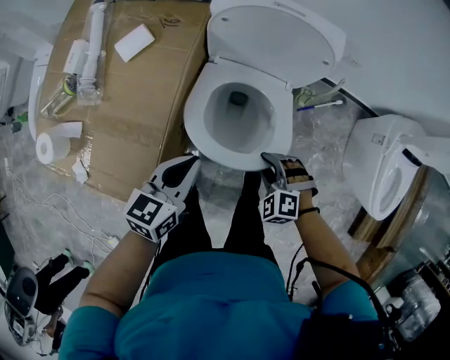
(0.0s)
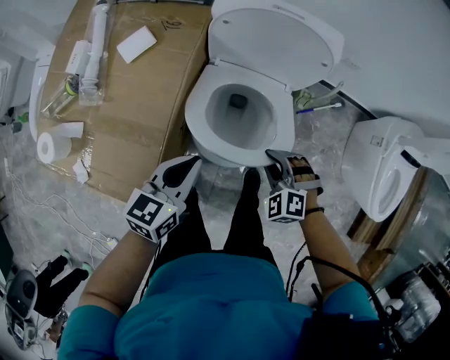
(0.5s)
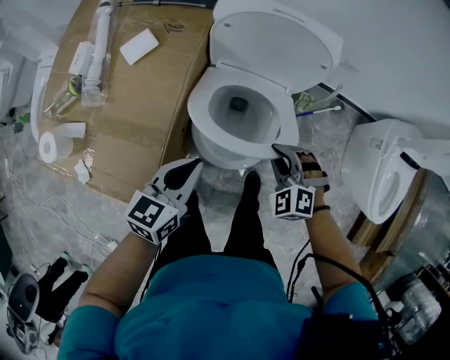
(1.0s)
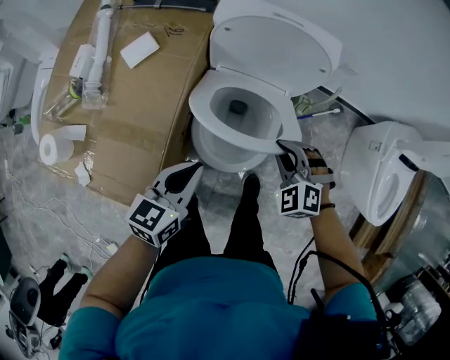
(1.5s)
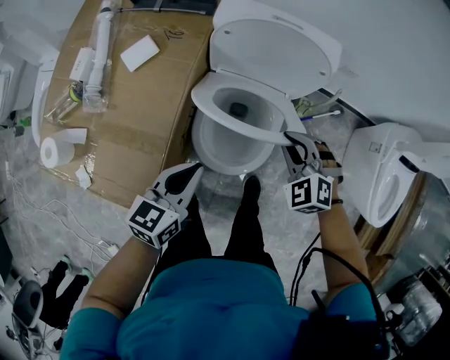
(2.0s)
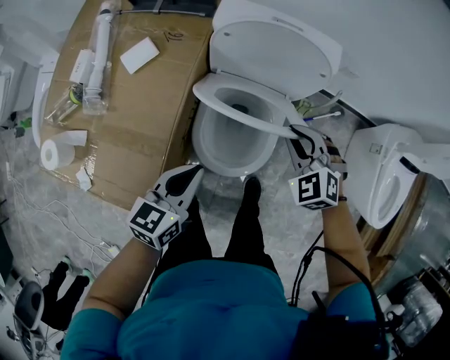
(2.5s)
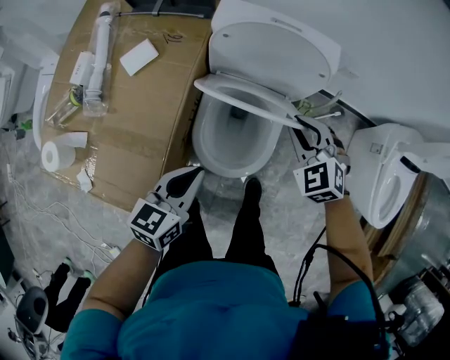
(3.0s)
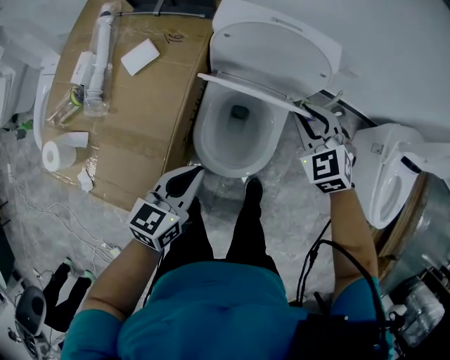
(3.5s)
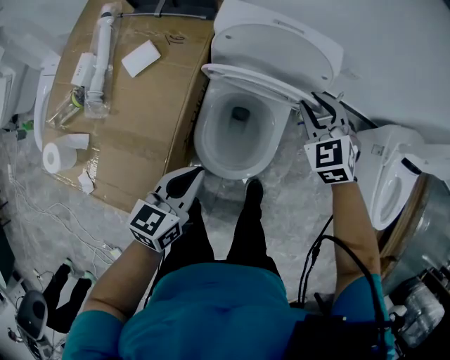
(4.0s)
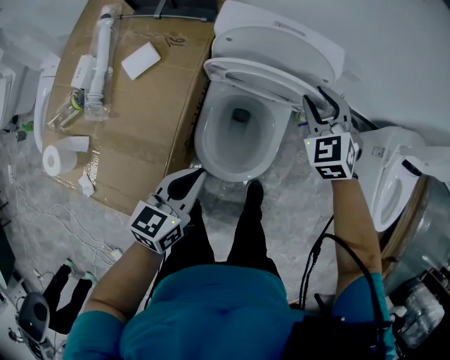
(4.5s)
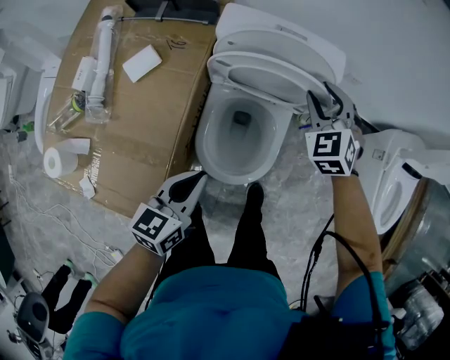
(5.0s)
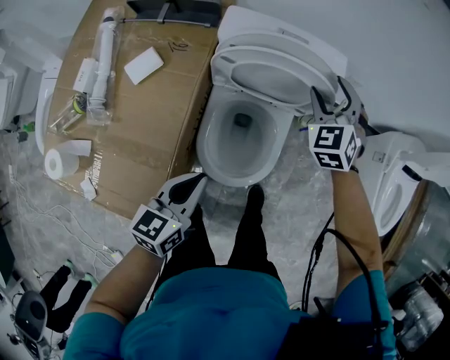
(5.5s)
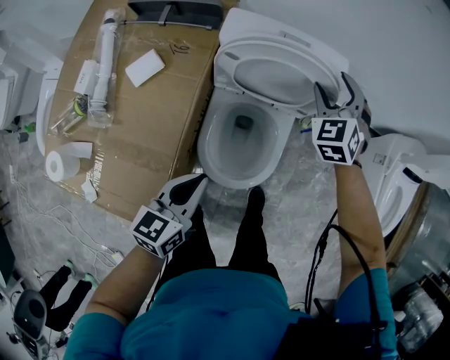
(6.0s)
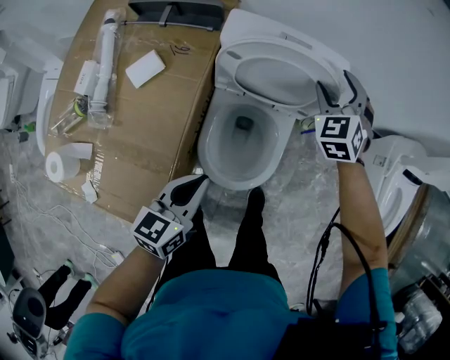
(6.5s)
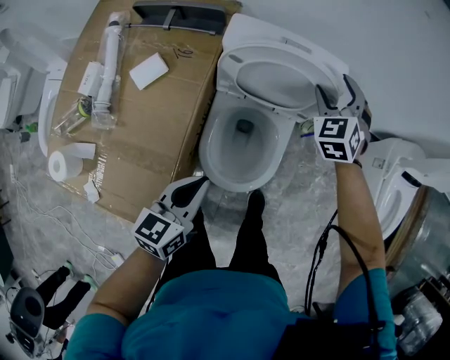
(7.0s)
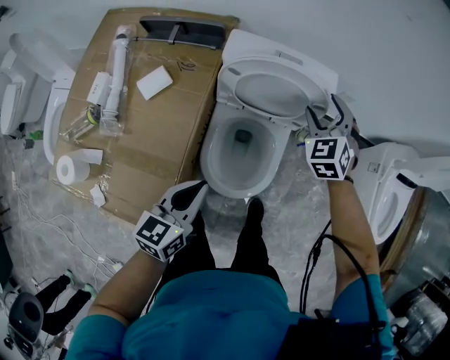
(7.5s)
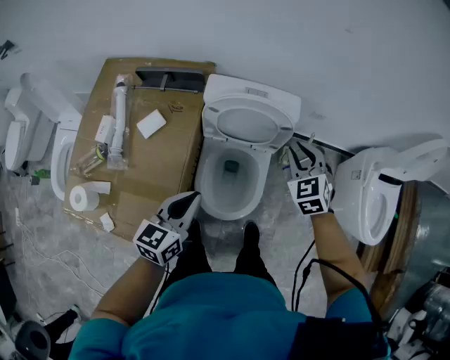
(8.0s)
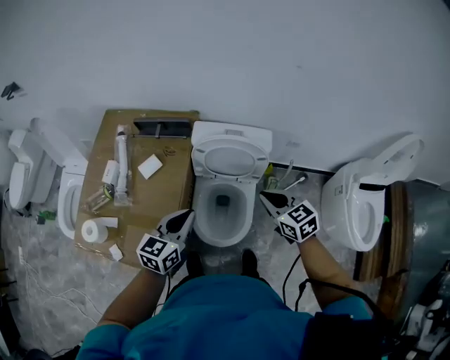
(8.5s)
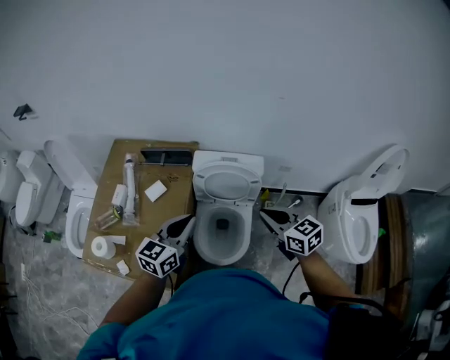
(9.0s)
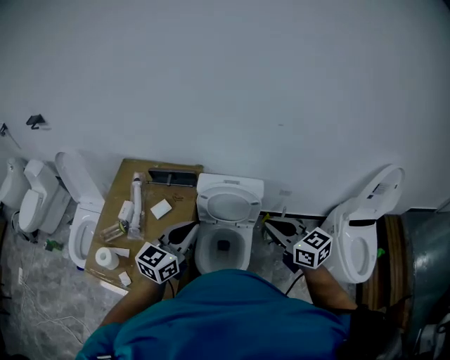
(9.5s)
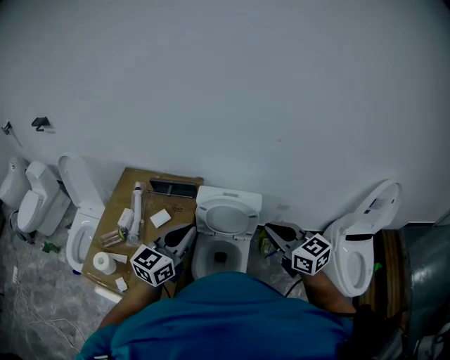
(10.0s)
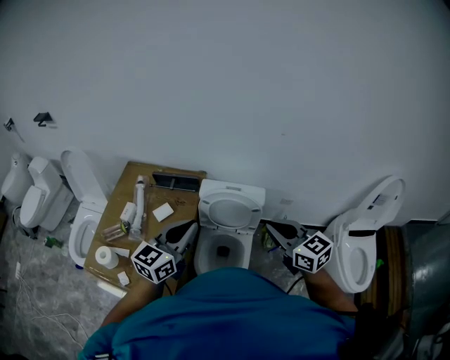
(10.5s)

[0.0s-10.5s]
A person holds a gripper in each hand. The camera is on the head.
0.0s to 2.0s: The right gripper heads forward and upward, covering roughly 15 cm.
2.0s to 4.0s: The right gripper shifts some 10 cm forward.
4.0s to 6.5s: The right gripper goes about 10 cm forward, and opens its fingers.
6.5s to 8.5s: The right gripper travels backward and upward by some 25 cm, changes its angle by some 50 degrees, and closes its fingers. The left gripper shifts about 20 cm upward.
8.5s to 10.5s: The two grippers go roughly 20 cm upward.

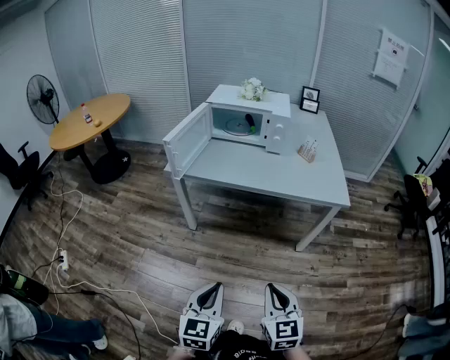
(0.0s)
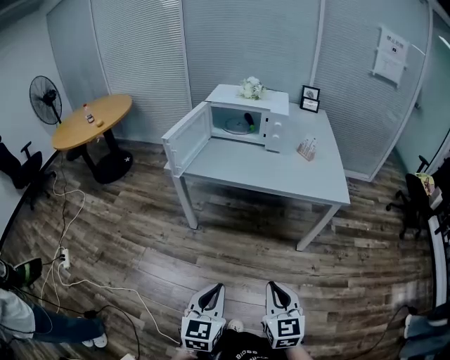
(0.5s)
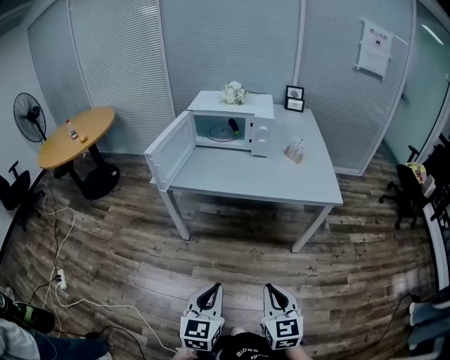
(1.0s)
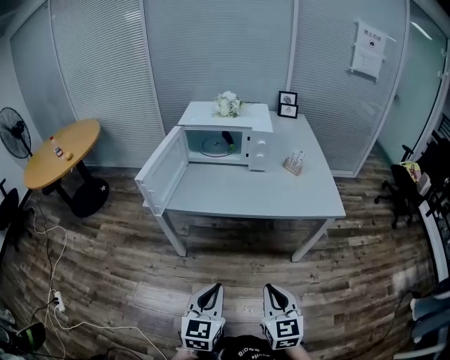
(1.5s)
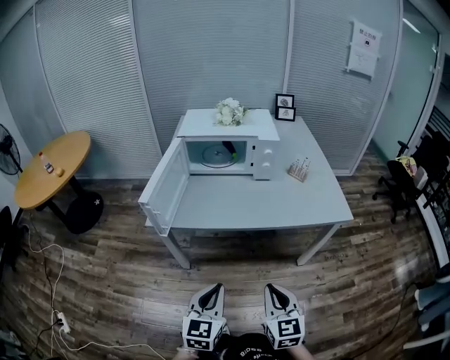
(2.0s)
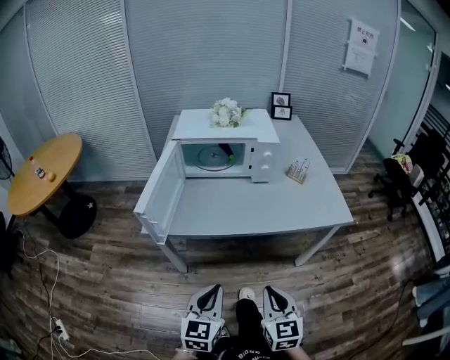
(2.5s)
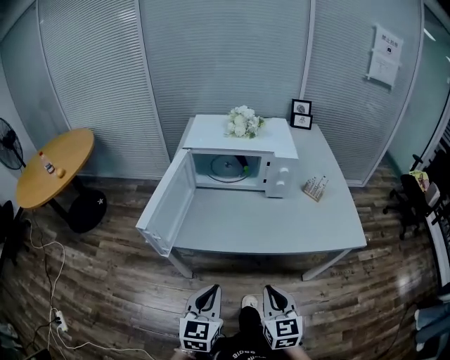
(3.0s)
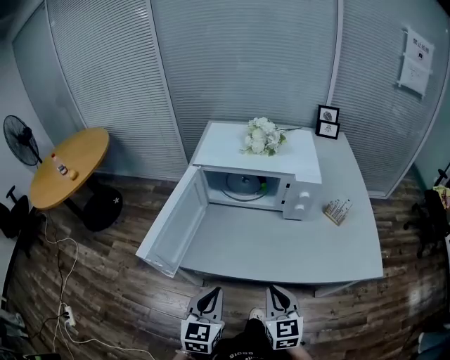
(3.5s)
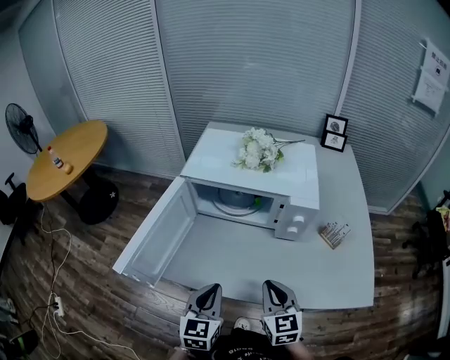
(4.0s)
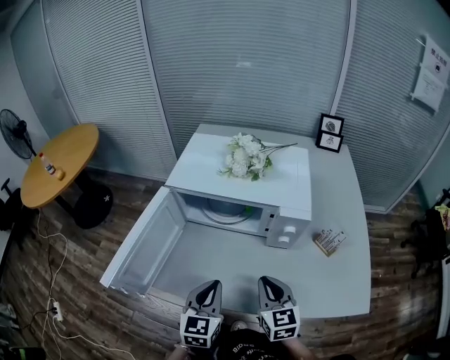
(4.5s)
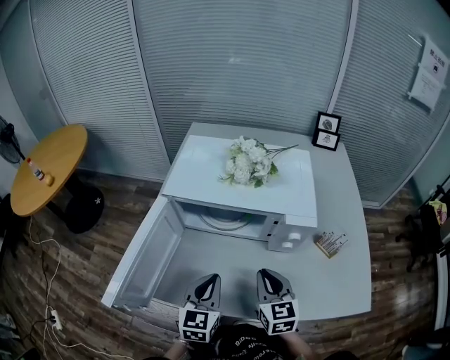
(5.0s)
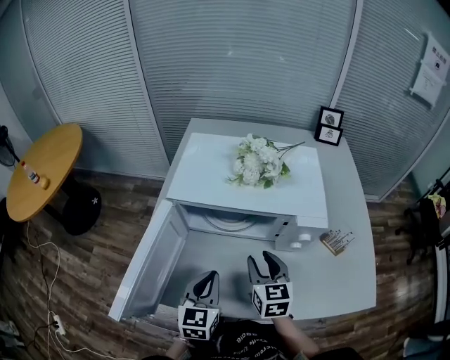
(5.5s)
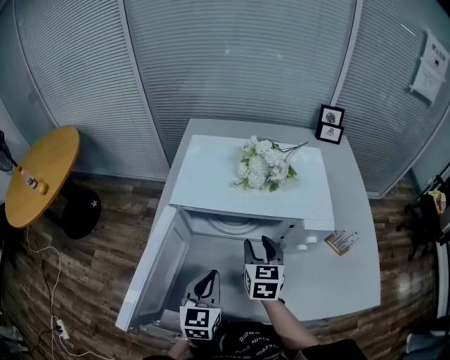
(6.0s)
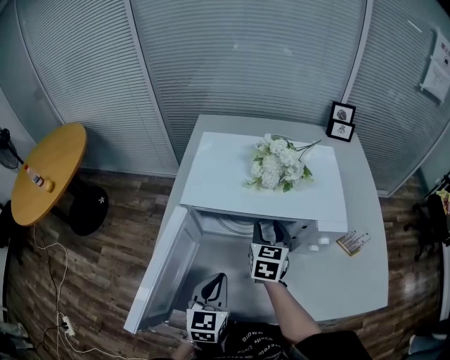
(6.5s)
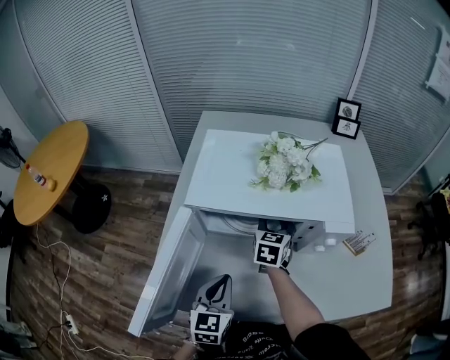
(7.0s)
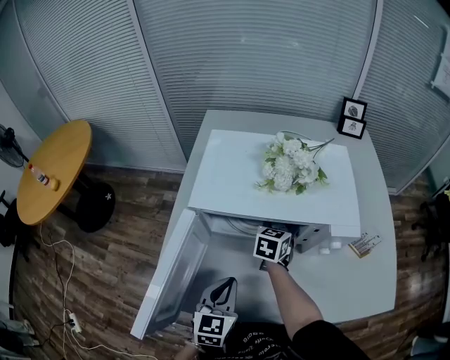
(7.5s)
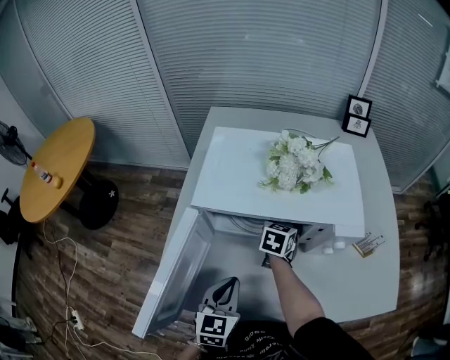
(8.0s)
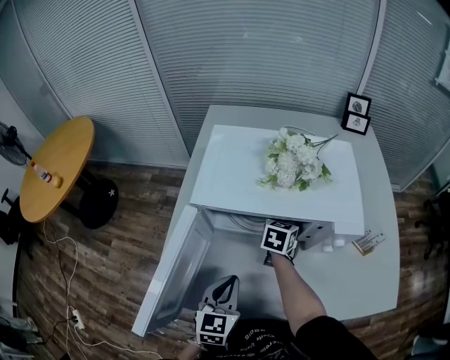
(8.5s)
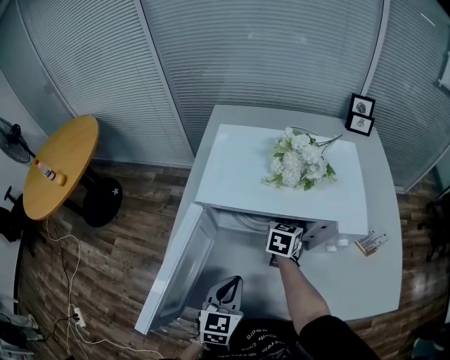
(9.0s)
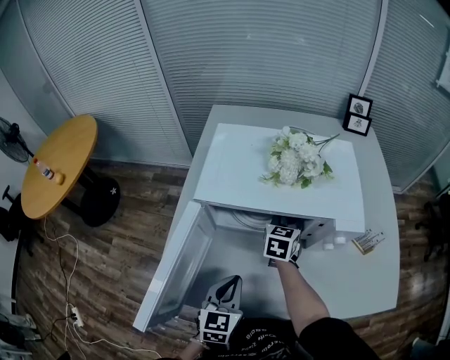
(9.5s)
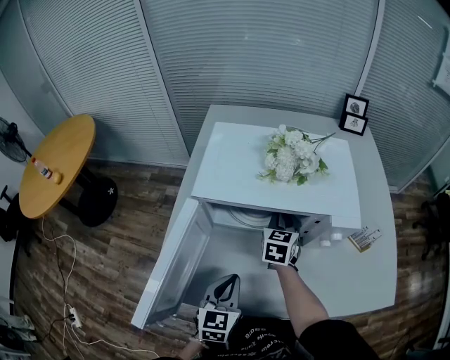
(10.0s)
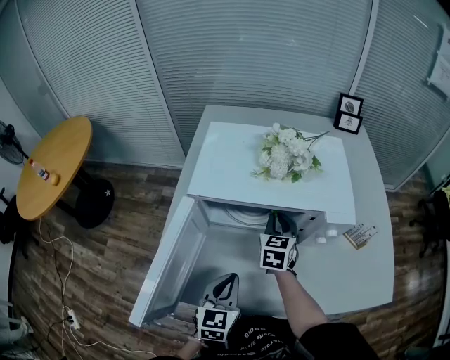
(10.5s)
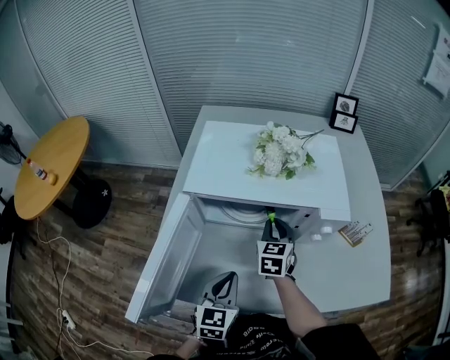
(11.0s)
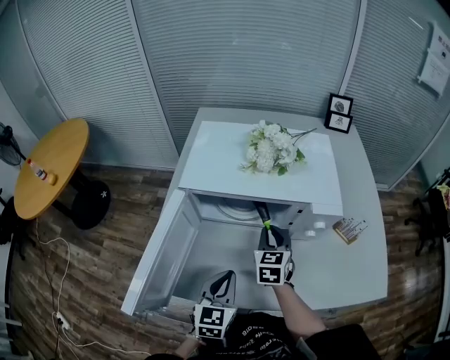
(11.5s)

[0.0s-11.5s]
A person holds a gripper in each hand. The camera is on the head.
0.0s to 2.0s: The grippers both shift forward by about 20 cm.
2.0s to 4.0s: Both grippers travel together forward, some 30 cm.
4.0s to 6.0s: The right gripper shifts some 20 cm forward, and opens, while the left gripper goes some 15 cm forward.
6.0s to 7.5s: The right gripper shifts some 10 cm forward and downward.
7.5s to 9.5s: The right gripper closes up.
9.5s to 11.5s: The right gripper moves backward, about 10 cm.

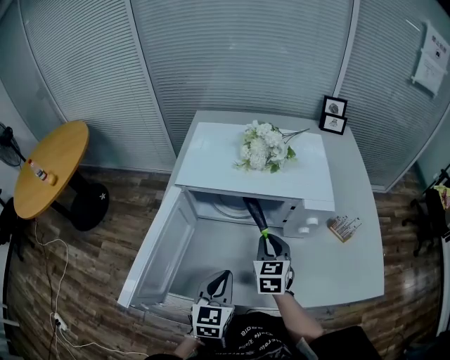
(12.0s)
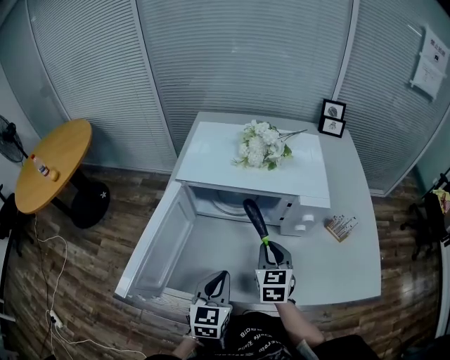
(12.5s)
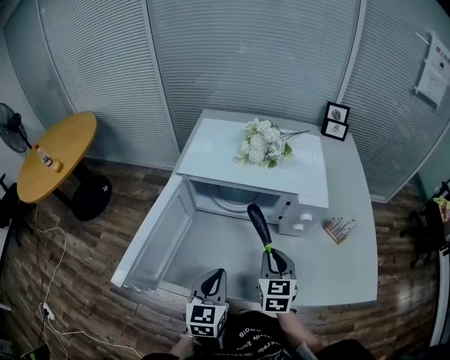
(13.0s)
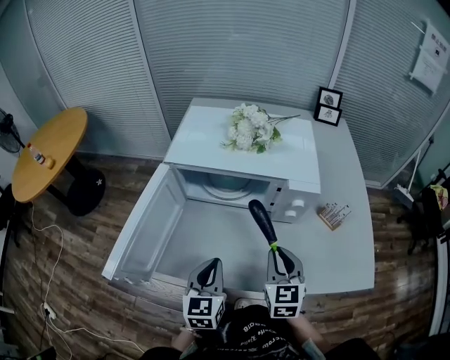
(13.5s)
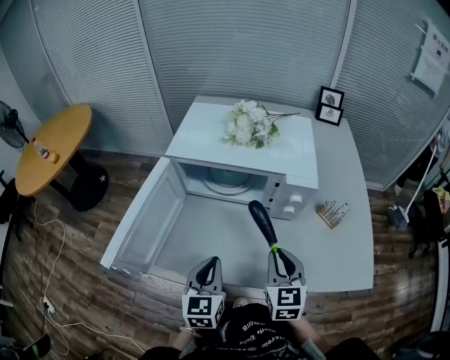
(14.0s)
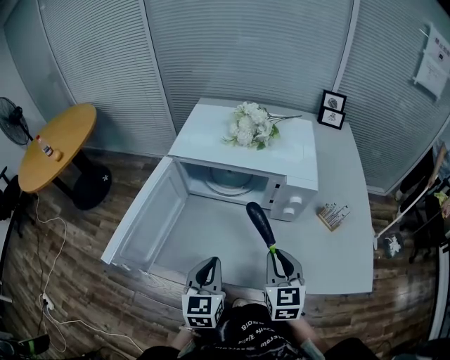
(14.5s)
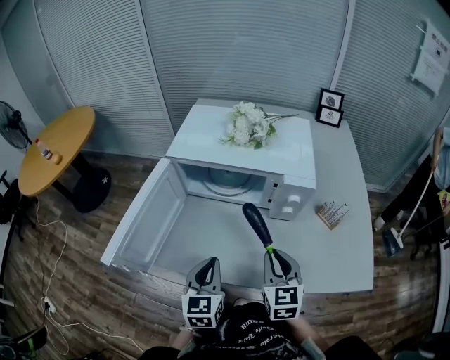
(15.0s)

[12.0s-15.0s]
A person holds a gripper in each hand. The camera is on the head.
12.0s to 13.5s: The right gripper shifts some 10 cm backward and to the right.
13.5s to 15.0s: There are only small adjustments of the grippers.

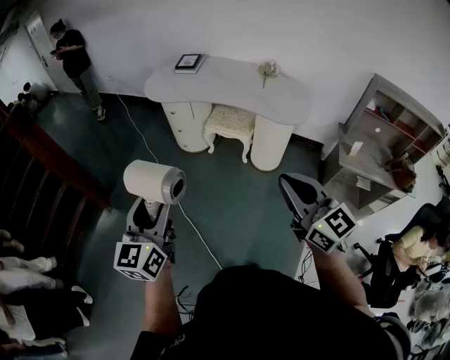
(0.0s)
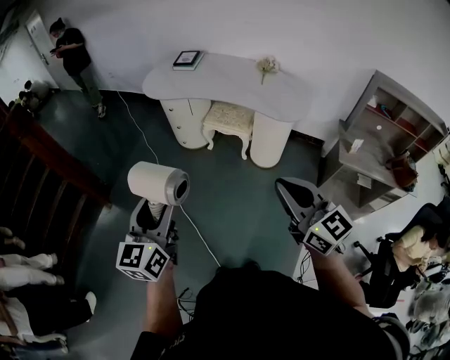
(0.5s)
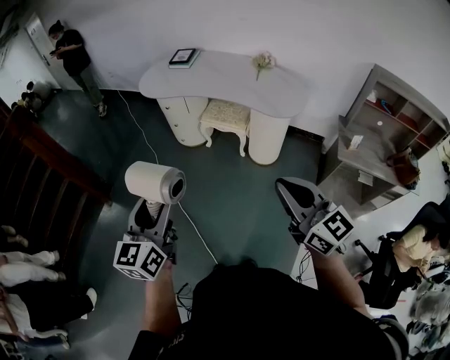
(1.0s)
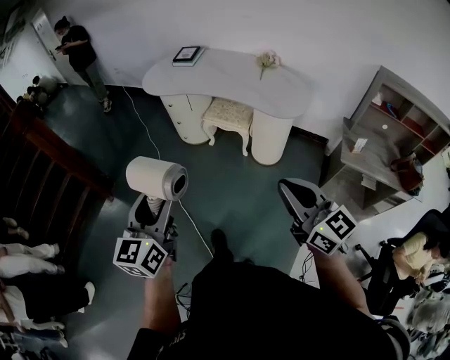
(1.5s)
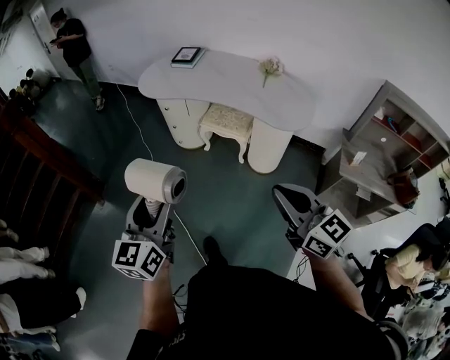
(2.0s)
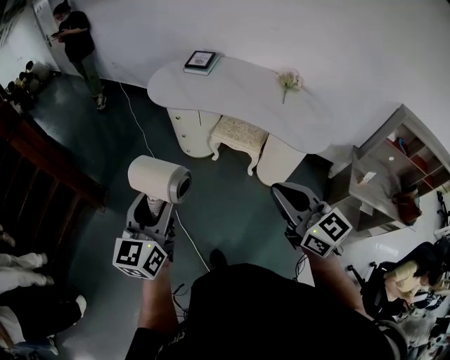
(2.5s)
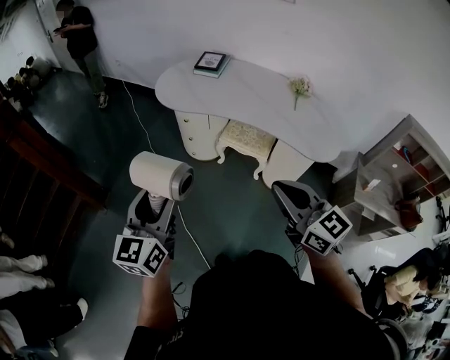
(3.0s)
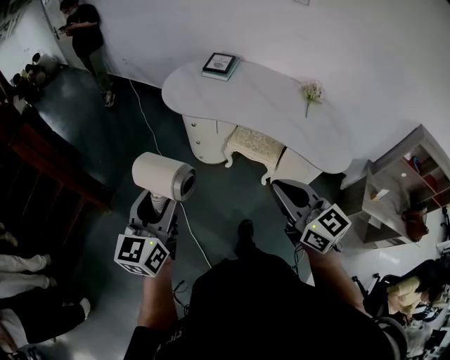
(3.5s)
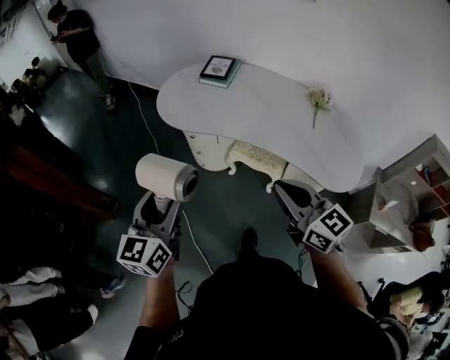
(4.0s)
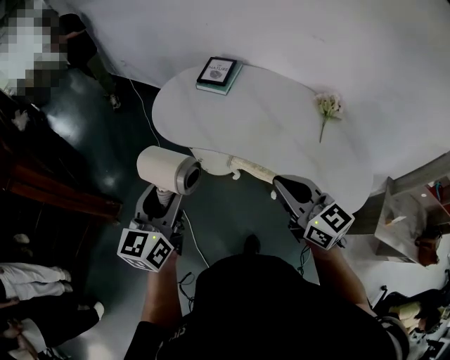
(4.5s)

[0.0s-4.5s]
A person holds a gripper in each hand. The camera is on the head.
0.0s to 2.0s: The two grippers go approximately 10 cm to the right and forward.
2.0s to 4.5s: The pair of grippers is taken forward, about 50 cm.
